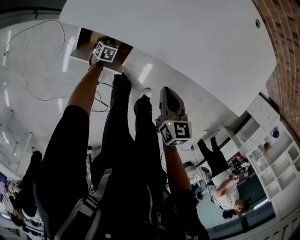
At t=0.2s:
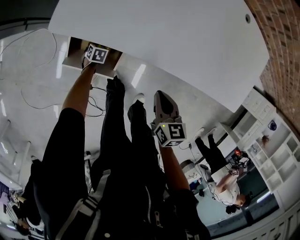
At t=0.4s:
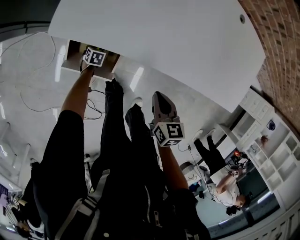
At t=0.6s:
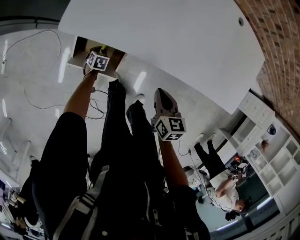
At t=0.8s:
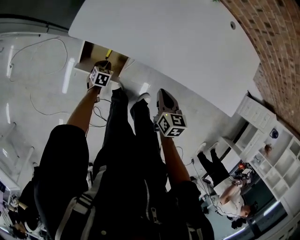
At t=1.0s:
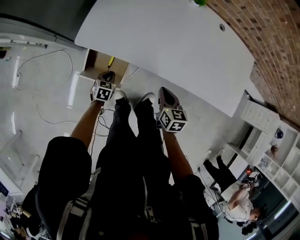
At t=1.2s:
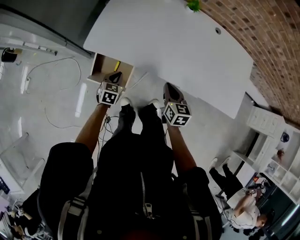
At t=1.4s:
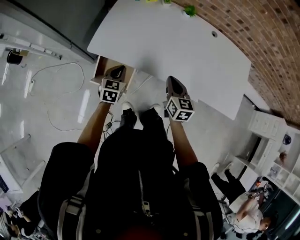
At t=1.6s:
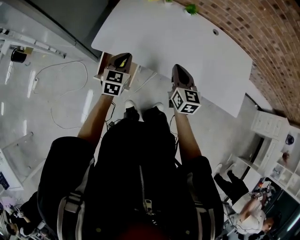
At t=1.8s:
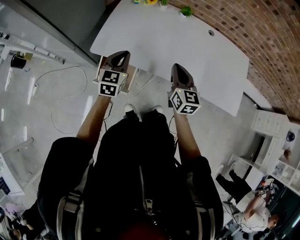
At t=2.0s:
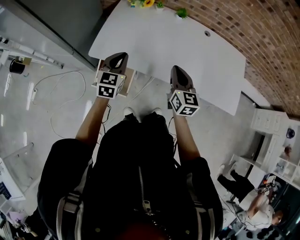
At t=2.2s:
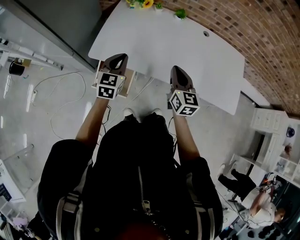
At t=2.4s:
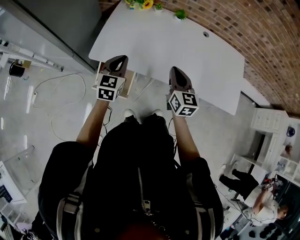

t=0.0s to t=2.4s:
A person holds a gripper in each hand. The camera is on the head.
t=0.0s to t=1.2s: The left gripper goes some 30 cm upward, and turns by approximately 20 degrees; the right gripper is displaced upward and to the right by approximately 10 cm.
t=1.2s to t=2.4s: The left gripper moves upward, approximately 25 cm, and changes its angle by approximately 30 degrees. The right gripper moves upward, about 15 cm, and swivels about 20 degrees.

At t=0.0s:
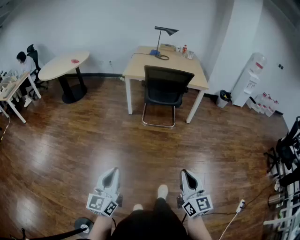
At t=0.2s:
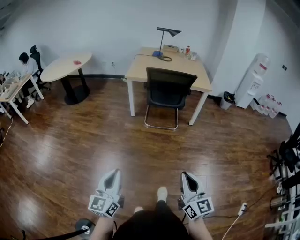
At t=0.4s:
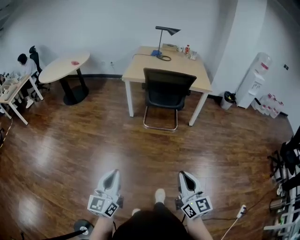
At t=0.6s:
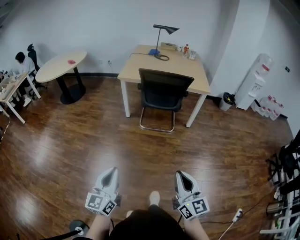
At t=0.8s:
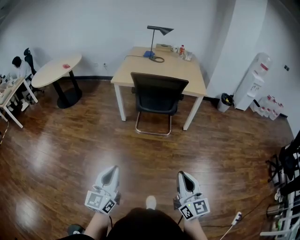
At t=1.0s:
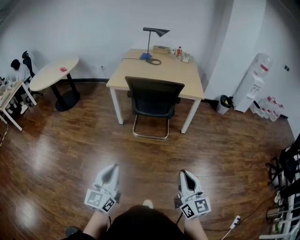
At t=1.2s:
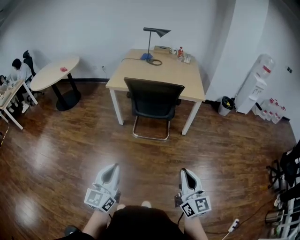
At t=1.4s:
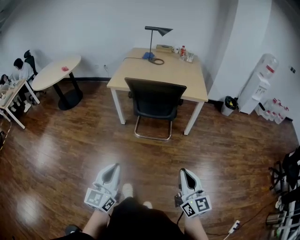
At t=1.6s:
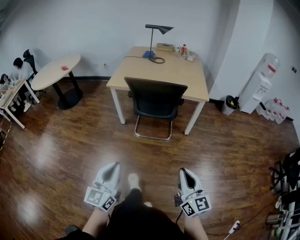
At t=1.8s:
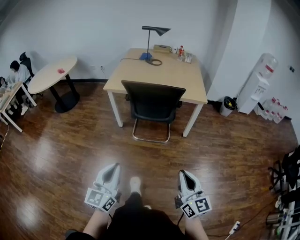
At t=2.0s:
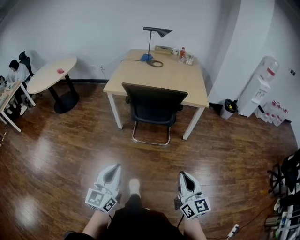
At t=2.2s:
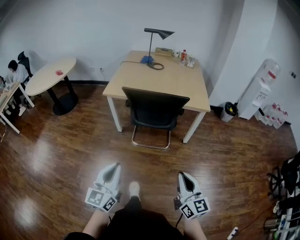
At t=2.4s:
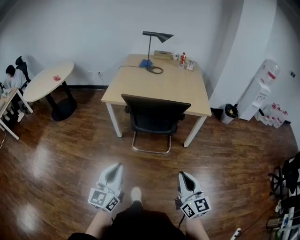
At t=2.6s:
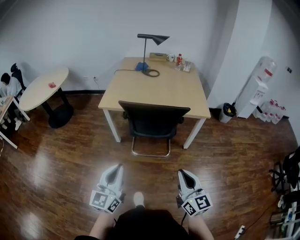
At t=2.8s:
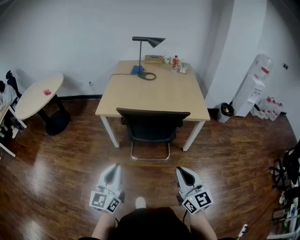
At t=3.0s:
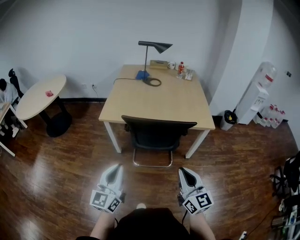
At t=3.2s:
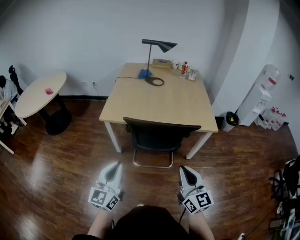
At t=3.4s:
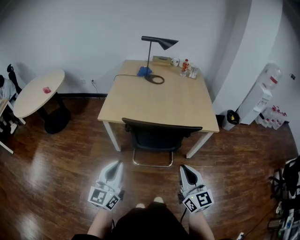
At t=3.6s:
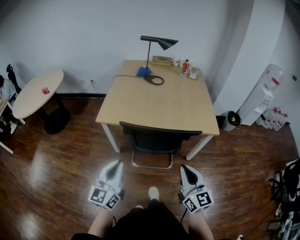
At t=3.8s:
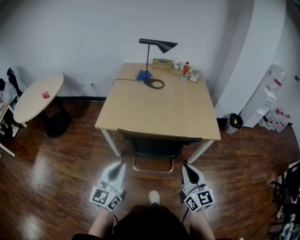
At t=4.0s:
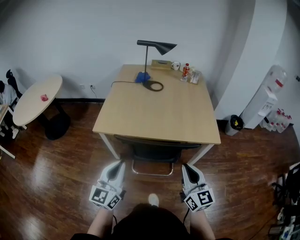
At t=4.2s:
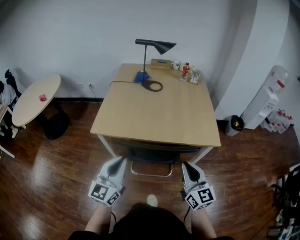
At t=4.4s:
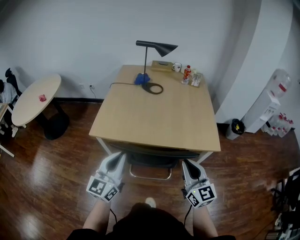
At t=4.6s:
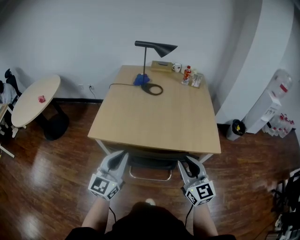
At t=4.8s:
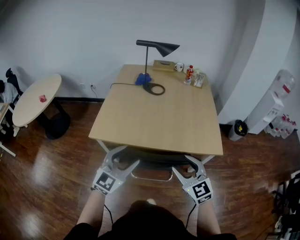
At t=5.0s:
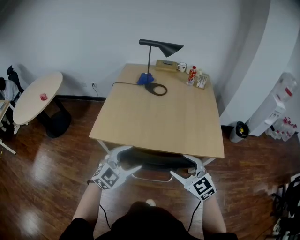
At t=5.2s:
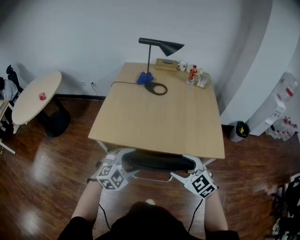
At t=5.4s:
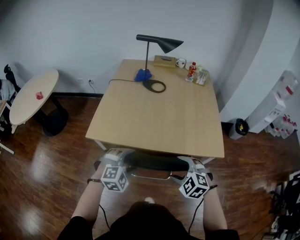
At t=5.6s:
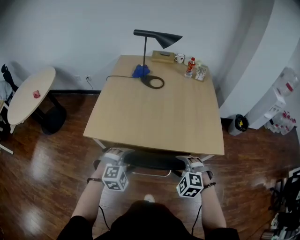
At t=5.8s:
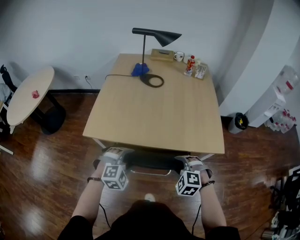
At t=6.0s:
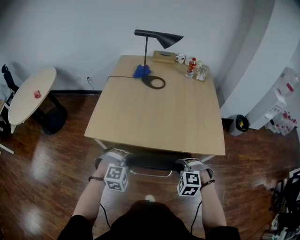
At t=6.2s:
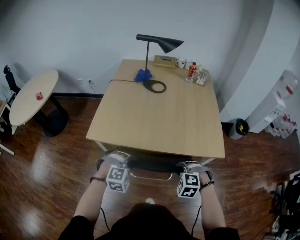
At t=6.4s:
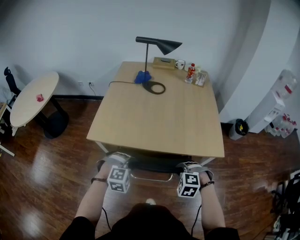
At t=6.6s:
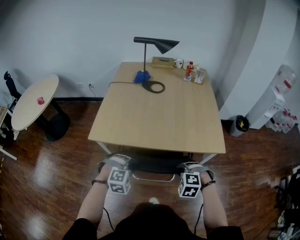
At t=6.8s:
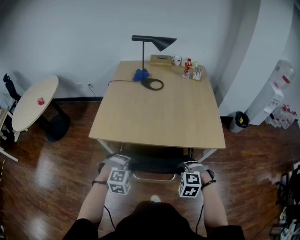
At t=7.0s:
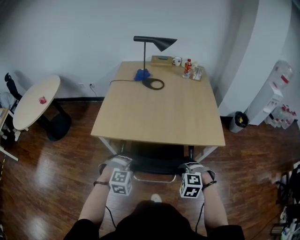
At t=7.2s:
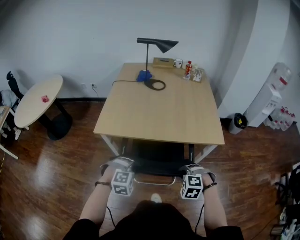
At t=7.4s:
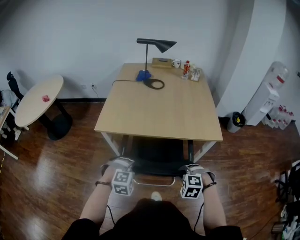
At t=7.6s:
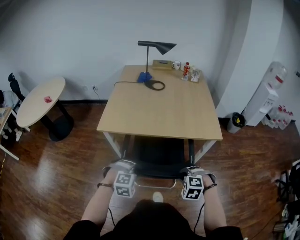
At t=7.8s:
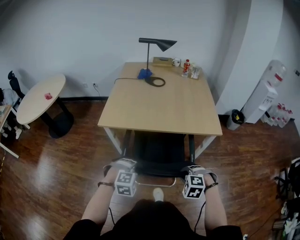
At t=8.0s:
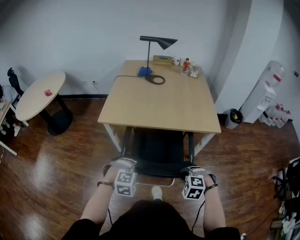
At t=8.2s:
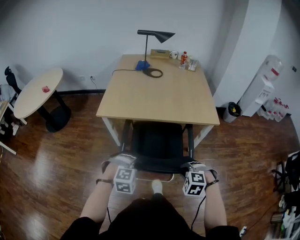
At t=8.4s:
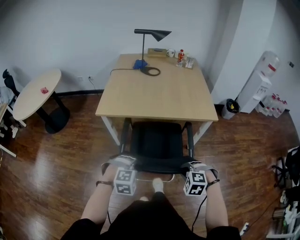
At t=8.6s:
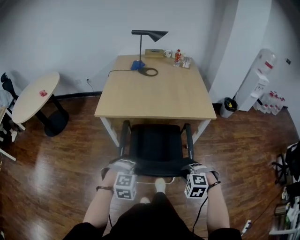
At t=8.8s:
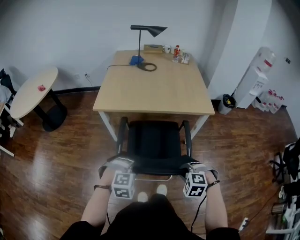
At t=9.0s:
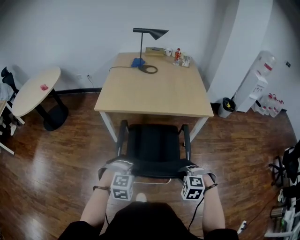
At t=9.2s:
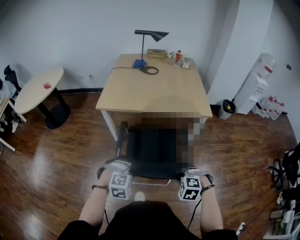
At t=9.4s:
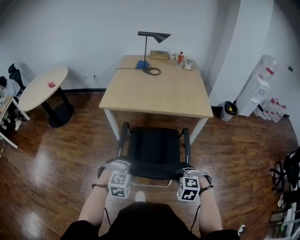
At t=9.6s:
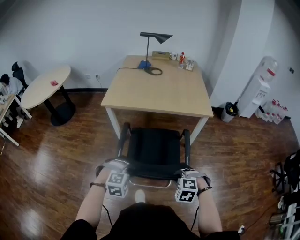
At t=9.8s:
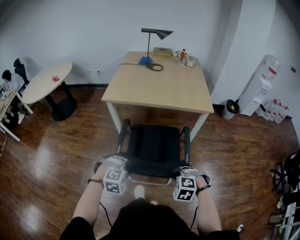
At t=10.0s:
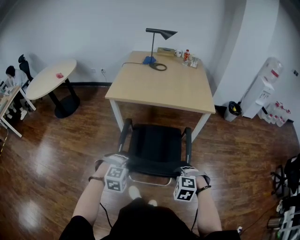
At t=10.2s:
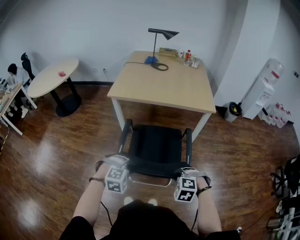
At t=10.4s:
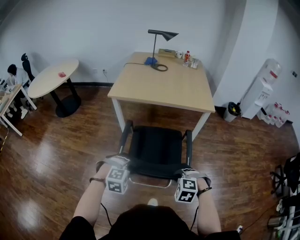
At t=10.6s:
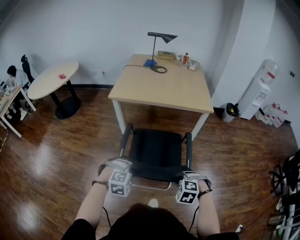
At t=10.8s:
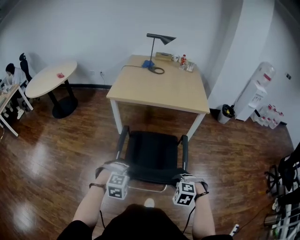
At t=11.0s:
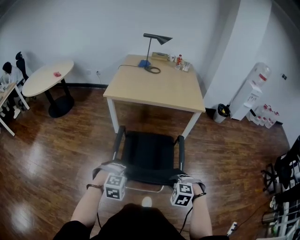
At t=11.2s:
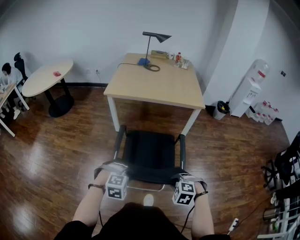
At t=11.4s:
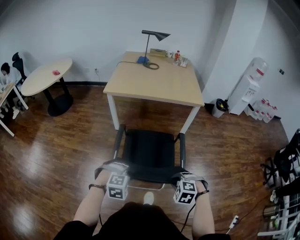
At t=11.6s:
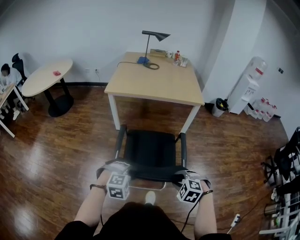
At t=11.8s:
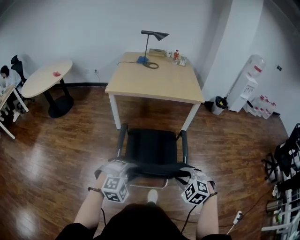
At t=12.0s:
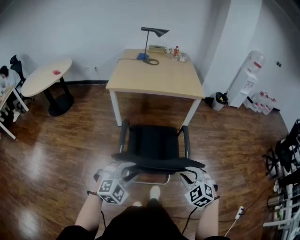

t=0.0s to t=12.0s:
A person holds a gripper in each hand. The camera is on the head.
t=0.0s to t=1.6s: Both grippers travel together forward and to the right, about 30 cm.
t=1.6s to t=3.0s: The grippers both shift forward by approximately 30 cm.
t=3.0s to t=4.4s: The two grippers go some 25 cm forward.
t=4.4s to t=6.0s: Both grippers move downward, about 20 cm. The right gripper tips its fingers downward by approximately 60 degrees, and opens, then closes again. The left gripper angles its fingers downward, by roughly 60 degrees, and opens, then closes once more.
t=6.0s to t=7.6s: The two grippers go approximately 20 cm backward.
t=7.6s to t=9.0s: The grippers both shift backward by some 15 cm.
t=9.0s to t=10.4s: The grippers both shift backward by some 15 cm.
t=10.4s to t=12.0s: The grippers both shift backward and upward by about 15 cm. The left gripper turns by roughly 30 degrees. The right gripper rotates some 30 degrees.

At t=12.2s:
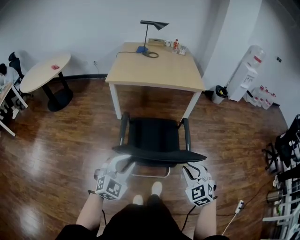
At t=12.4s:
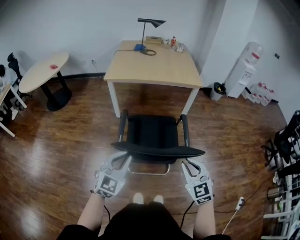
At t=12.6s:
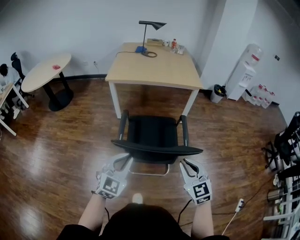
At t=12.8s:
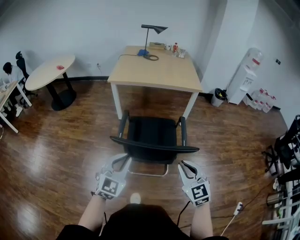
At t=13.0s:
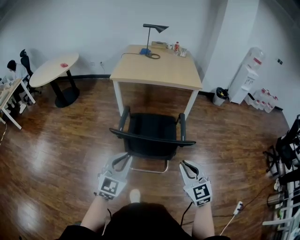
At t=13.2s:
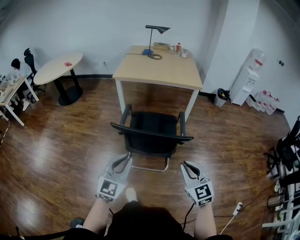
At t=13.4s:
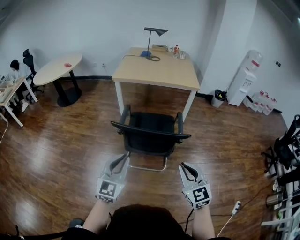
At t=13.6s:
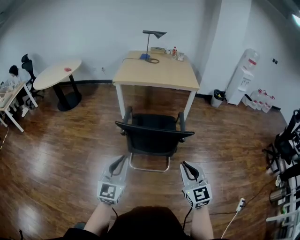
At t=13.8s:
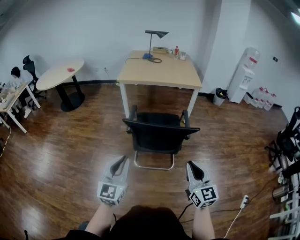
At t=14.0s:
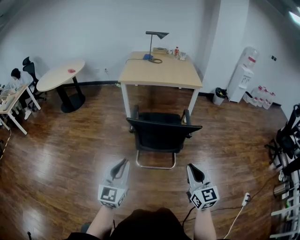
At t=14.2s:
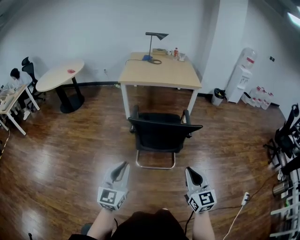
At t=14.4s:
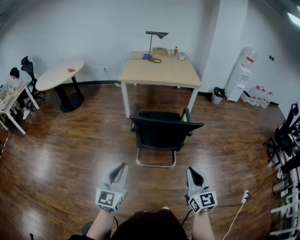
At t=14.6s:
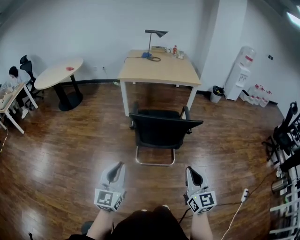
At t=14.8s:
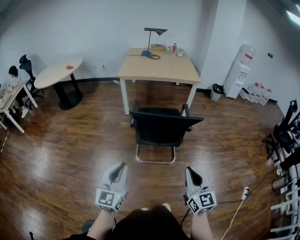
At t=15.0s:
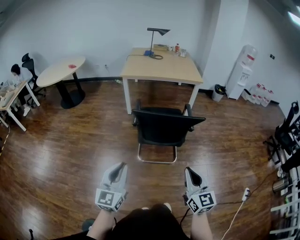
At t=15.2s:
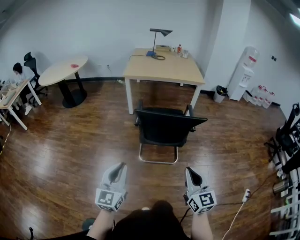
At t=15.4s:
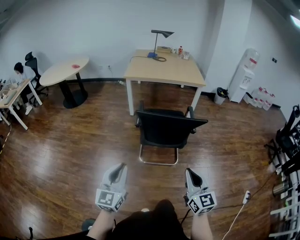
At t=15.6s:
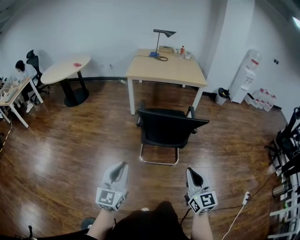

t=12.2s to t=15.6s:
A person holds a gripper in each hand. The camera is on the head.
t=12.2s to t=13.8s: The left gripper is displaced backward by approximately 20 cm, and rotates approximately 40 degrees. Meanwhile the right gripper shifts some 20 cm backward and upward, and rotates roughly 40 degrees.
t=13.8s to t=15.6s: Both grippers travel together backward and to the left, some 10 cm.

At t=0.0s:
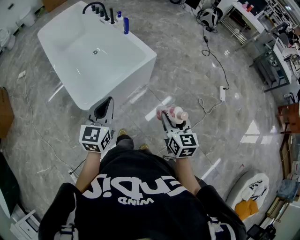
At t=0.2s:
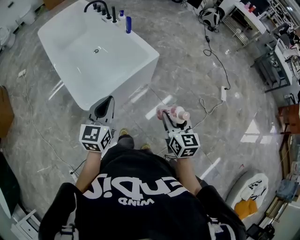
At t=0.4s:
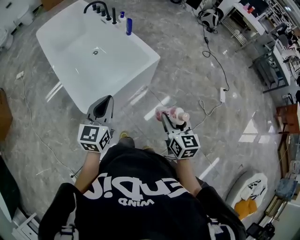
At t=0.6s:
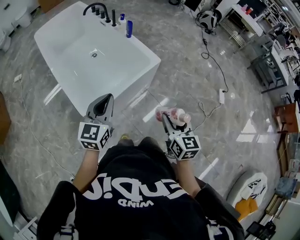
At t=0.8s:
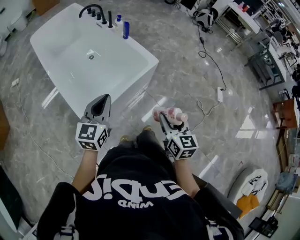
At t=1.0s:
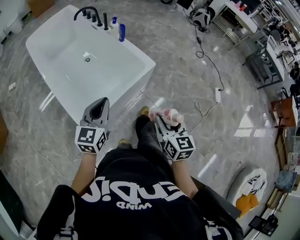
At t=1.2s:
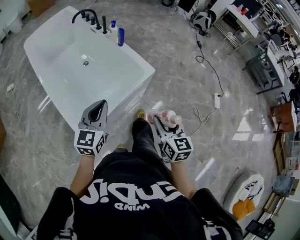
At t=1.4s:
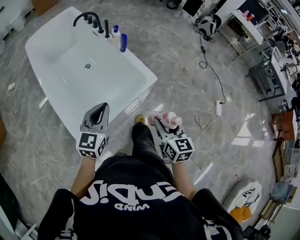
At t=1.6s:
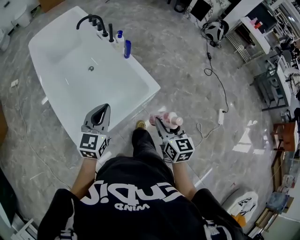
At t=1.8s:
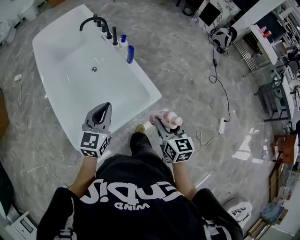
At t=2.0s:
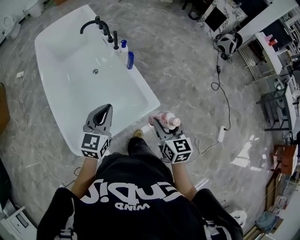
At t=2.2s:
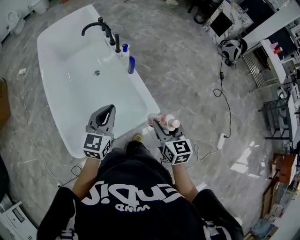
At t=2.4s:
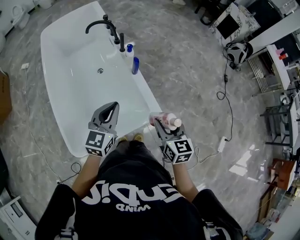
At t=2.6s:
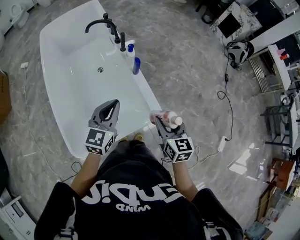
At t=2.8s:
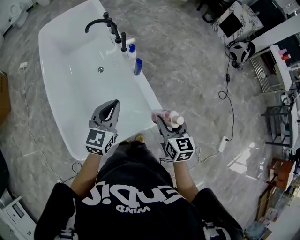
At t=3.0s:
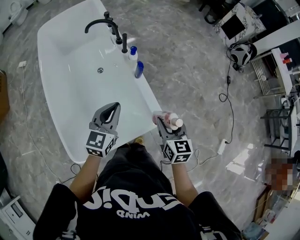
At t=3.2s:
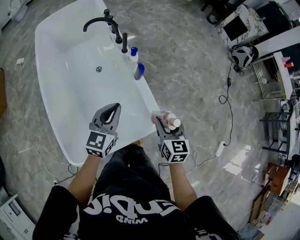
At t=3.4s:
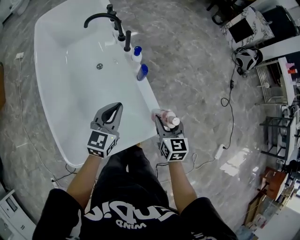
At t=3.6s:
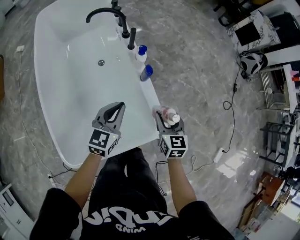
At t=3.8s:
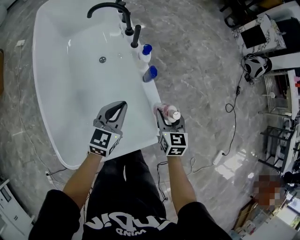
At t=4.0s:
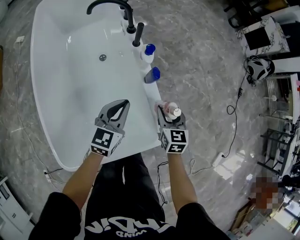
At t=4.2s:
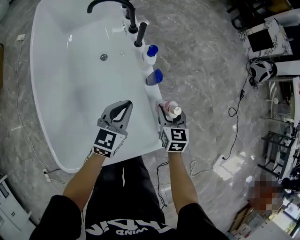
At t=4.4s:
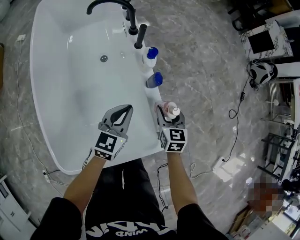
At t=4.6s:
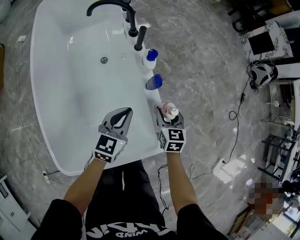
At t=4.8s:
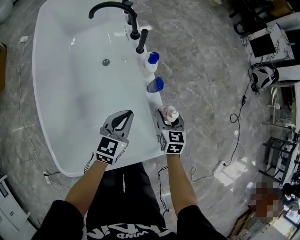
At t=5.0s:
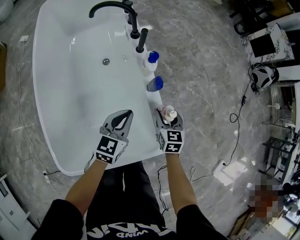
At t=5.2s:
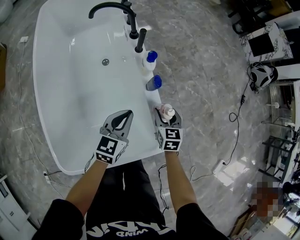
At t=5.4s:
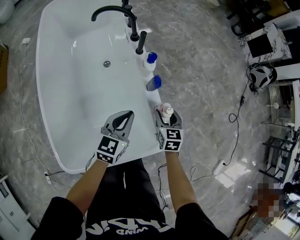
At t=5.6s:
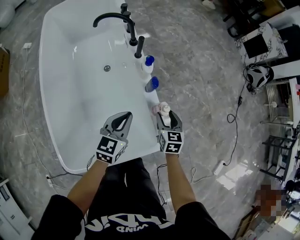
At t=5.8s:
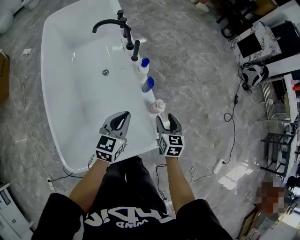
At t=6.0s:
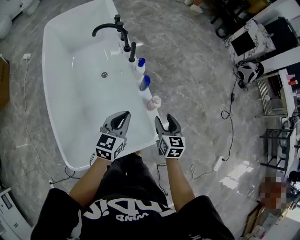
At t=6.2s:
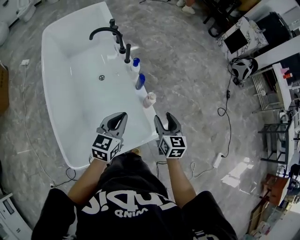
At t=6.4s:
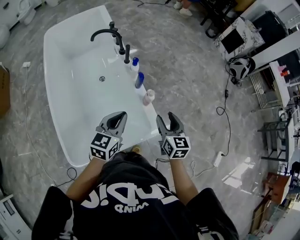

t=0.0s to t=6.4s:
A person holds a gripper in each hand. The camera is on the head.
t=0.0s to t=1.6s: The grippers both shift forward by approximately 25 cm.
t=1.6s to t=3.2s: The two grippers go approximately 25 cm forward.
t=3.2s to t=4.8s: The grippers both shift downward and forward by some 20 cm.
t=4.8s to t=6.4s: Both grippers move upward and backward, about 25 cm.
